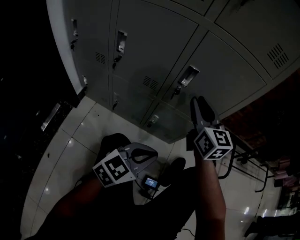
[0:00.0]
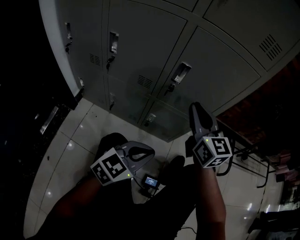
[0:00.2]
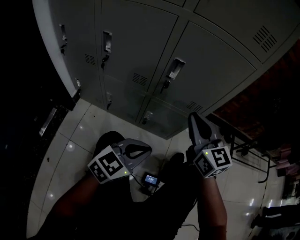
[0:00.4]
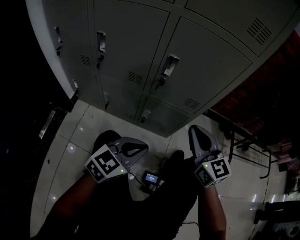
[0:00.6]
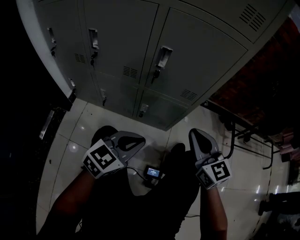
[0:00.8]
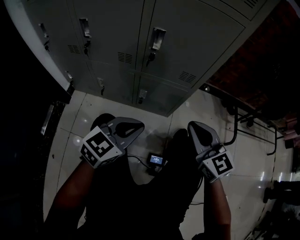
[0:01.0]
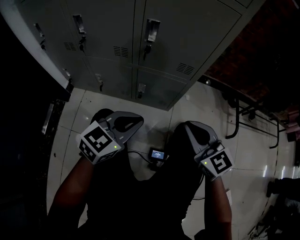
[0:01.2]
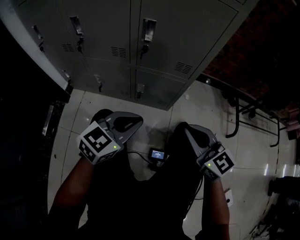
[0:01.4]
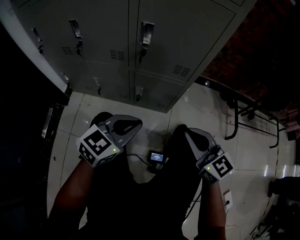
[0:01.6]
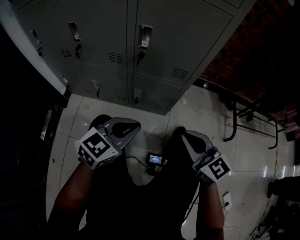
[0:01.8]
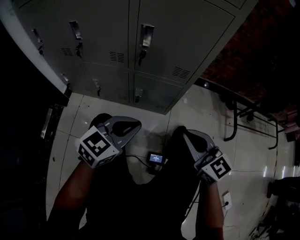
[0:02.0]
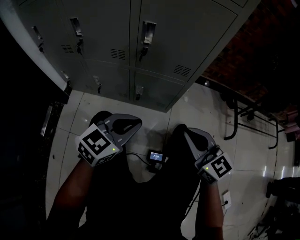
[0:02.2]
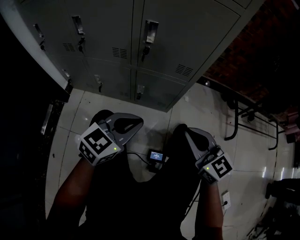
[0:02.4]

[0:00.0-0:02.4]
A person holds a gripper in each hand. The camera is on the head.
0:00.0 to 0:01.2: The right gripper goes about 25 cm backward, to the right and downward, and closes its fingers.
0:01.2 to 0:02.4: There are only small adjustments of the grippers.

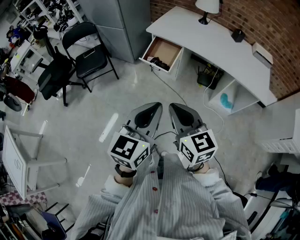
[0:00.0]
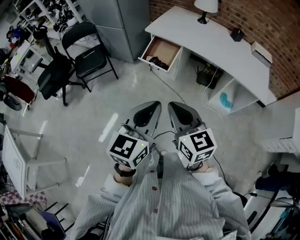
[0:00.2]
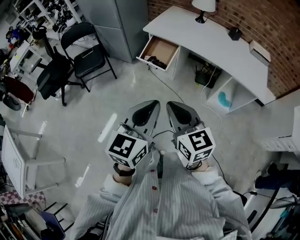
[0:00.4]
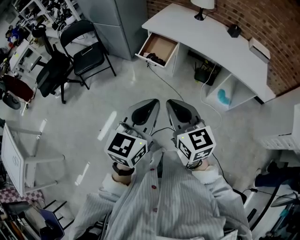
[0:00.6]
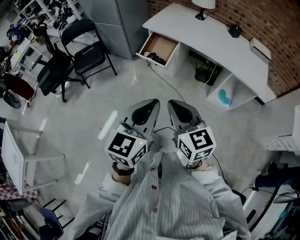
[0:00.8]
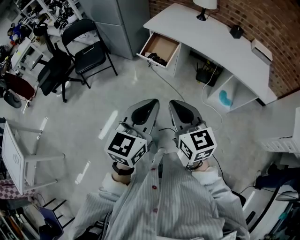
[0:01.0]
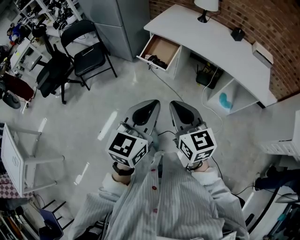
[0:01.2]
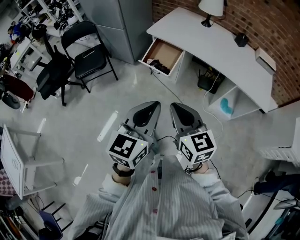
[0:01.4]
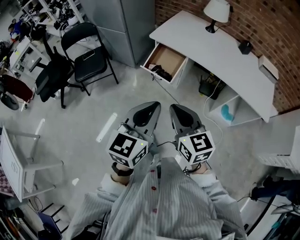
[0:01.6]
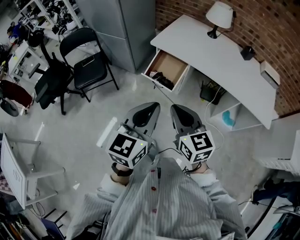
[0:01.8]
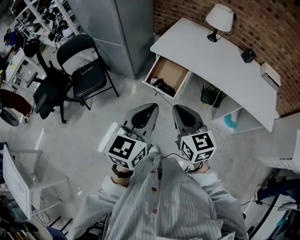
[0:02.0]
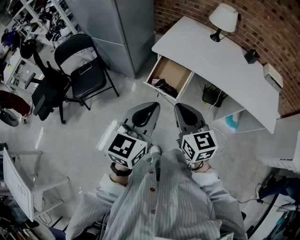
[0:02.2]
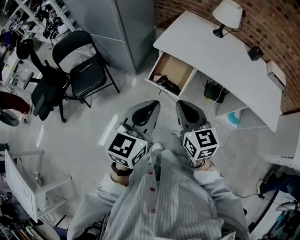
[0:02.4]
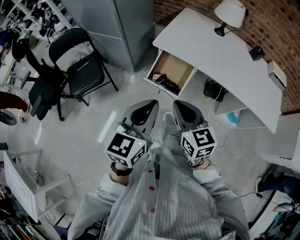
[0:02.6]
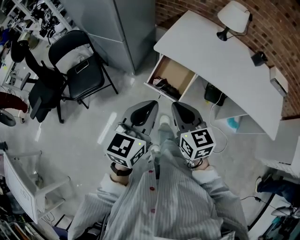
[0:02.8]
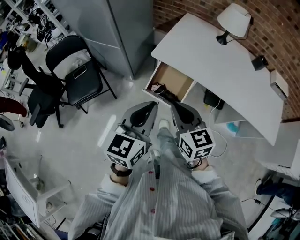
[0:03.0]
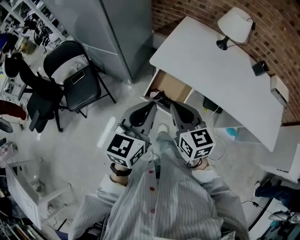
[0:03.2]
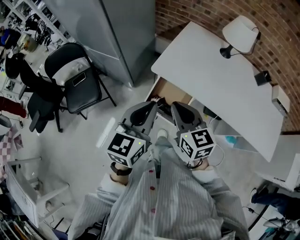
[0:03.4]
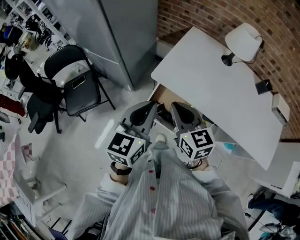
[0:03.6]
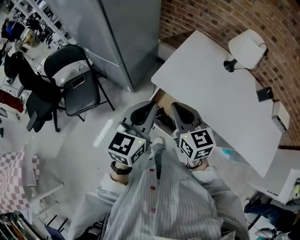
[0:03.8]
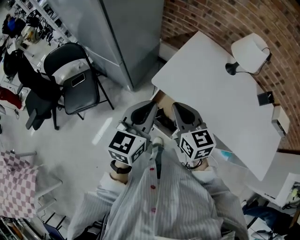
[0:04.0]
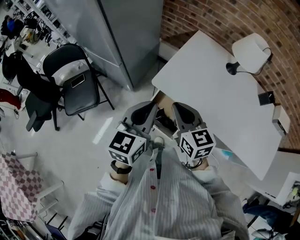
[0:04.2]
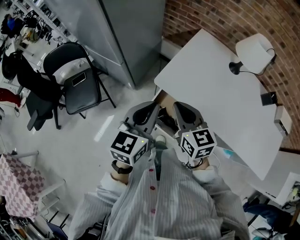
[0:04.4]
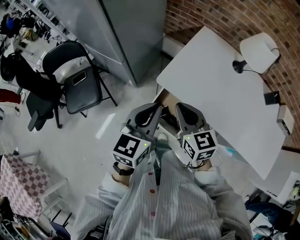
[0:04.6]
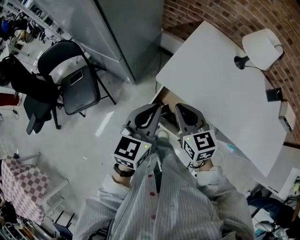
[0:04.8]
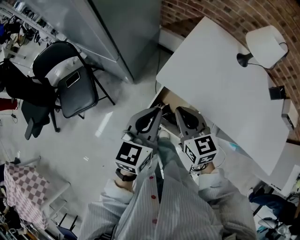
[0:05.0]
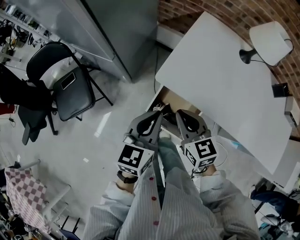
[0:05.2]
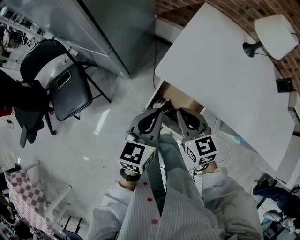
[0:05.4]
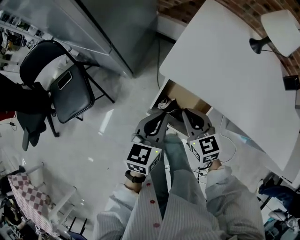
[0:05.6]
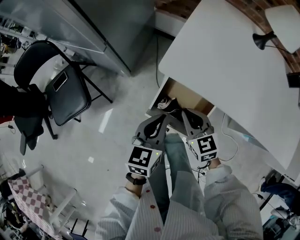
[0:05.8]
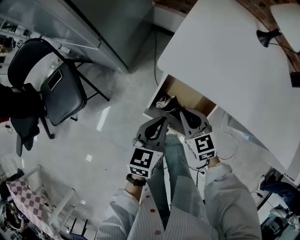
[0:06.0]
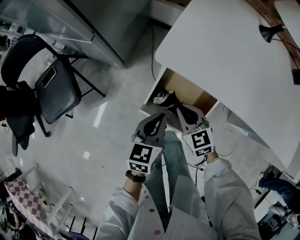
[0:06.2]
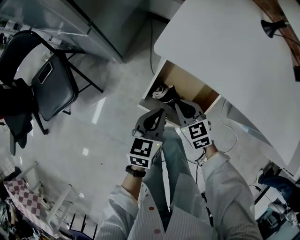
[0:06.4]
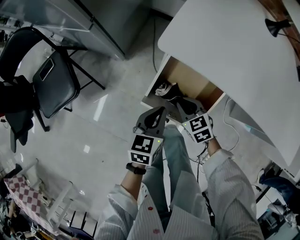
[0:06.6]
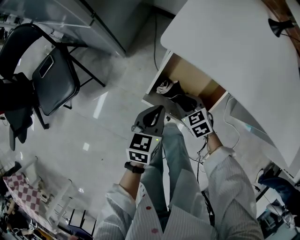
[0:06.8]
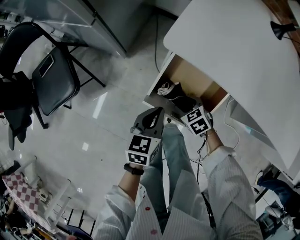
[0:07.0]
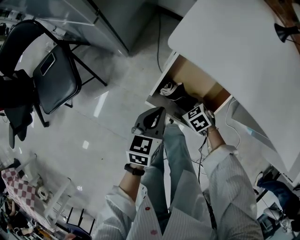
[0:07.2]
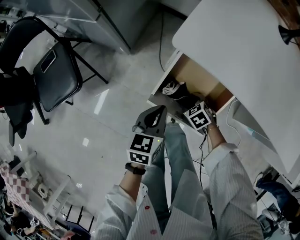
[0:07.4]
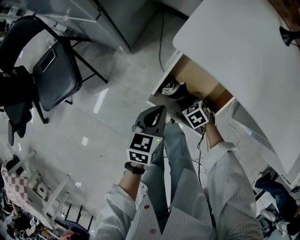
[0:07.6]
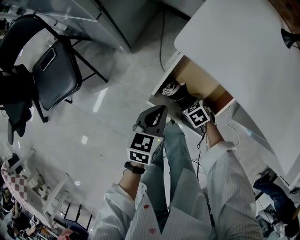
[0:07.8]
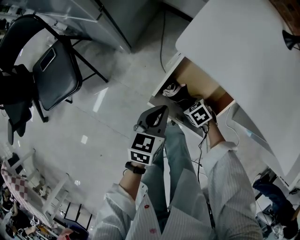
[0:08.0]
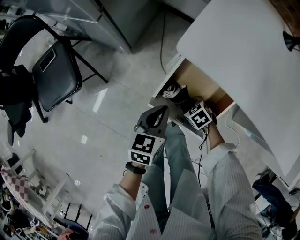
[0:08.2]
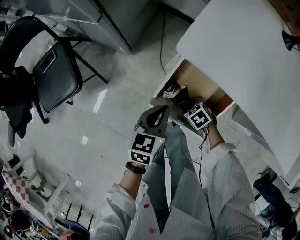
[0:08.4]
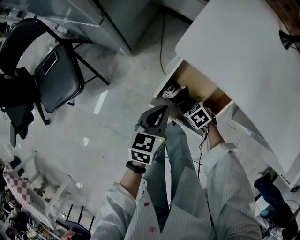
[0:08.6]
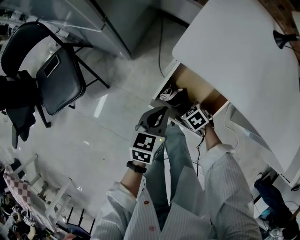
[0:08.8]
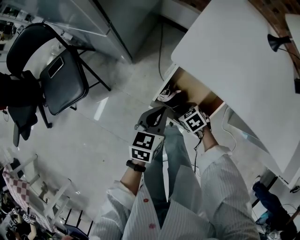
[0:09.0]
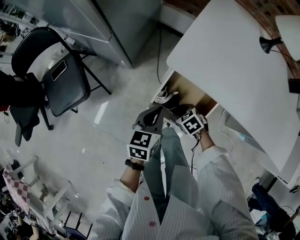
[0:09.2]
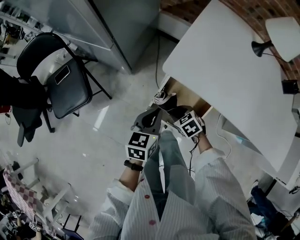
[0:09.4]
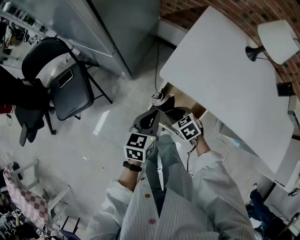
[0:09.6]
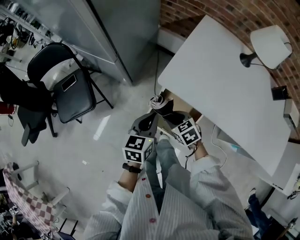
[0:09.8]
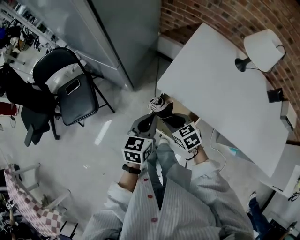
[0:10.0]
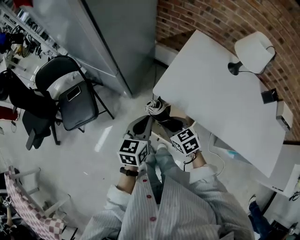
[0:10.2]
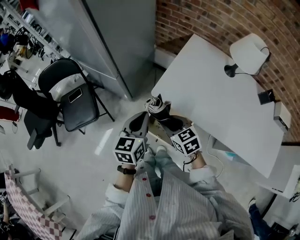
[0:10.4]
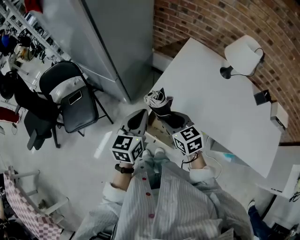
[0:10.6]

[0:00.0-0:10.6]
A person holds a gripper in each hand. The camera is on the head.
0:00.0 to 0:01.6: The two grippers go some 10 cm forward.
0:01.6 to 0:03.0: The grippers both shift forward by approximately 30 cm.
0:03.0 to 0:04.6: Both grippers move forward, roughly 20 cm.
0:04.6 to 0:06.0: Both grippers move downward, approximately 30 cm.
0:06.0 to 0:07.6: The right gripper travels downward by about 25 cm, tilts its fingers roughly 40 degrees downward, and opens up. Meanwhile the left gripper is displaced downward by about 10 cm.
0:07.6 to 0:09.0: Both grippers move upward, about 5 cm.
0:09.0 to 0:10.6: The two grippers go approximately 35 cm upward. The right gripper tilts its fingers about 40 degrees upward. Meanwhile the left gripper rotates approximately 20 degrees.

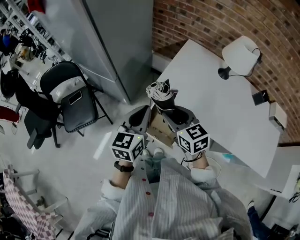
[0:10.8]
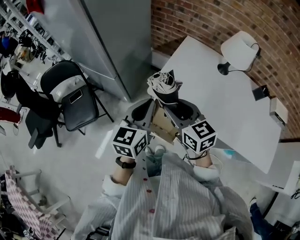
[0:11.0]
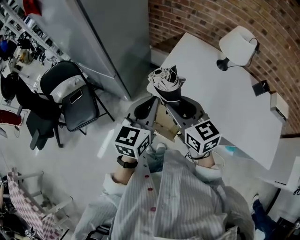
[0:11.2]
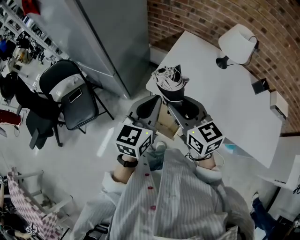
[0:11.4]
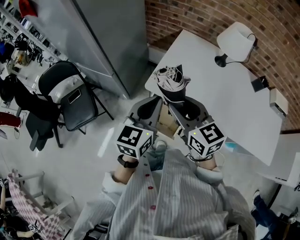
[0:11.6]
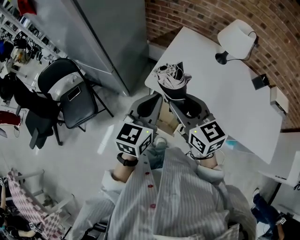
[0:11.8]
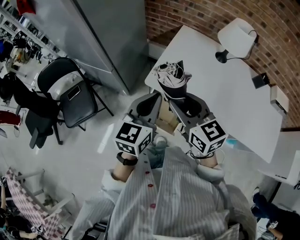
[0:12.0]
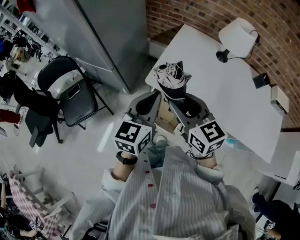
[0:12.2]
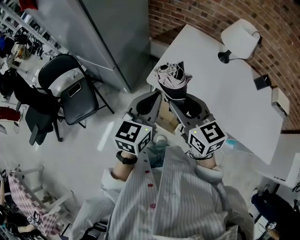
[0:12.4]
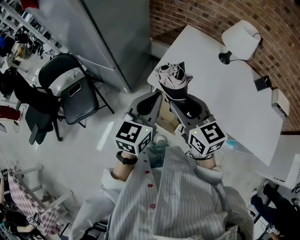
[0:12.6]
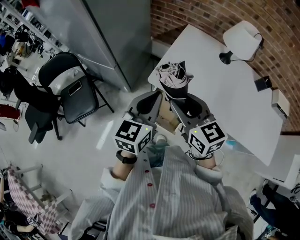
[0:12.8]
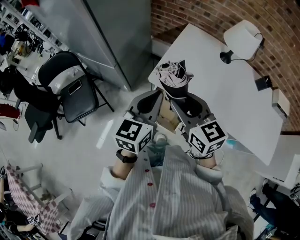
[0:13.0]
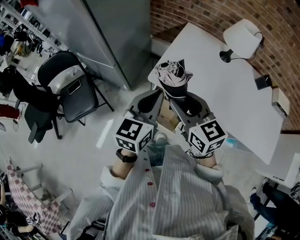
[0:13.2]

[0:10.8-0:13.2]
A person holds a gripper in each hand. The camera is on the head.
0:10.8 to 0:12.0: The right gripper shifts roughly 10 cm upward. Meanwhile the left gripper moves approximately 5 cm.
0:12.0 to 0:13.2: Neither gripper changes place.

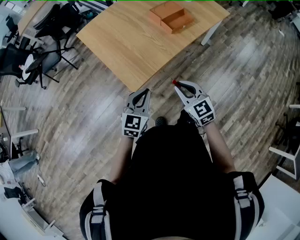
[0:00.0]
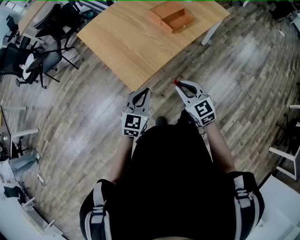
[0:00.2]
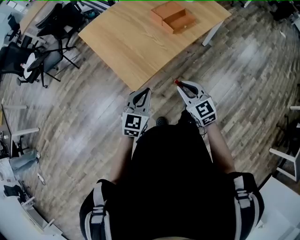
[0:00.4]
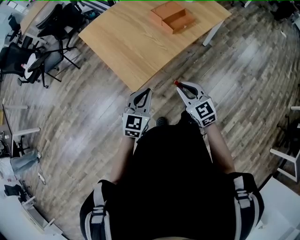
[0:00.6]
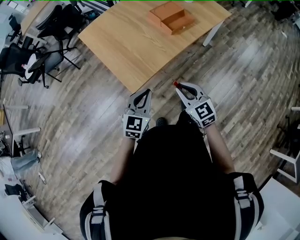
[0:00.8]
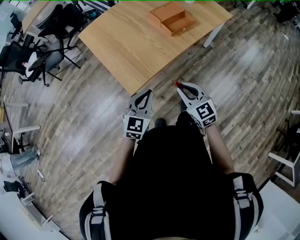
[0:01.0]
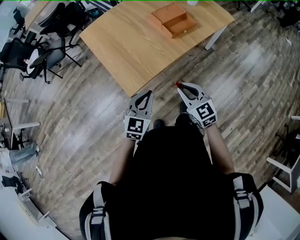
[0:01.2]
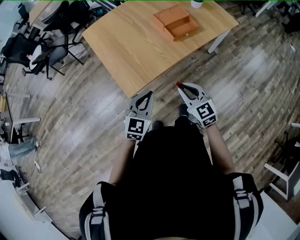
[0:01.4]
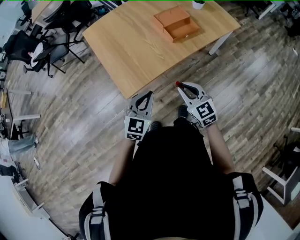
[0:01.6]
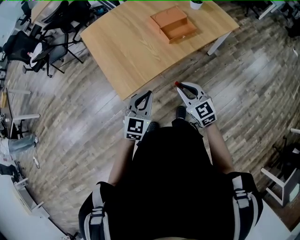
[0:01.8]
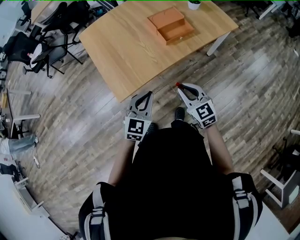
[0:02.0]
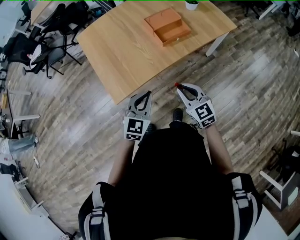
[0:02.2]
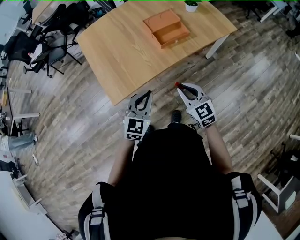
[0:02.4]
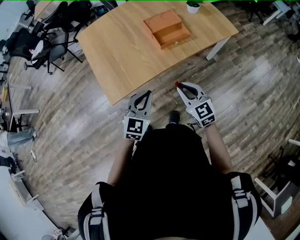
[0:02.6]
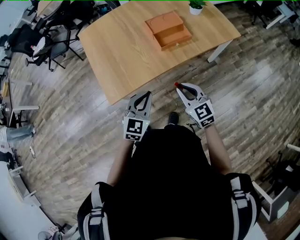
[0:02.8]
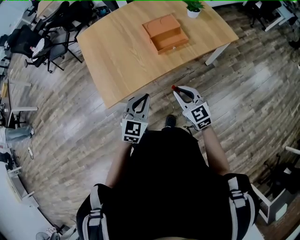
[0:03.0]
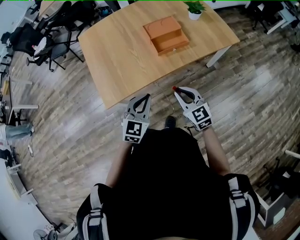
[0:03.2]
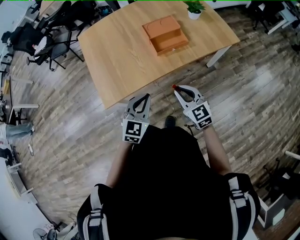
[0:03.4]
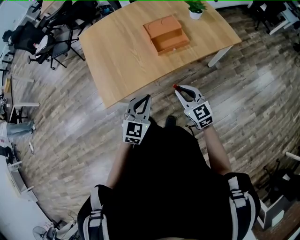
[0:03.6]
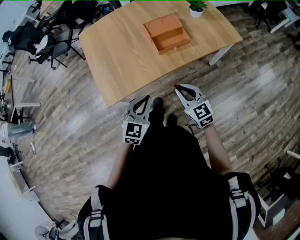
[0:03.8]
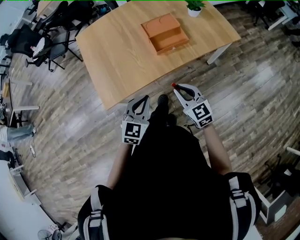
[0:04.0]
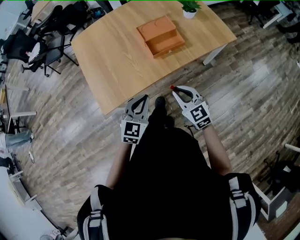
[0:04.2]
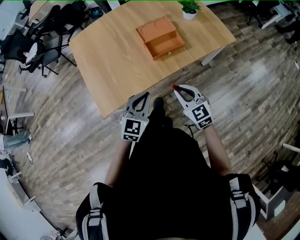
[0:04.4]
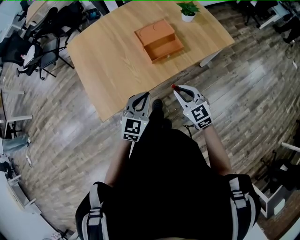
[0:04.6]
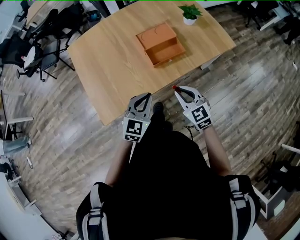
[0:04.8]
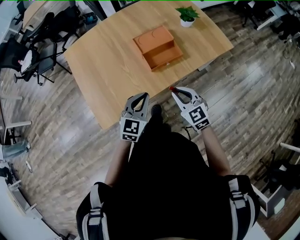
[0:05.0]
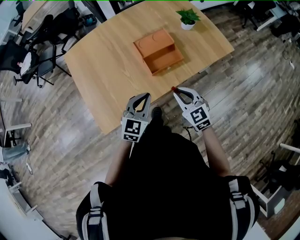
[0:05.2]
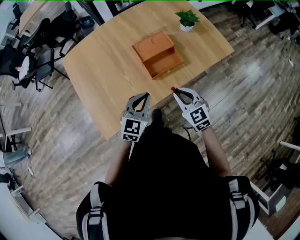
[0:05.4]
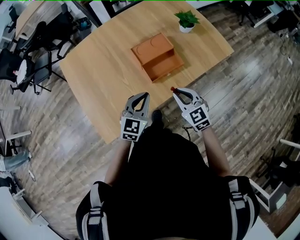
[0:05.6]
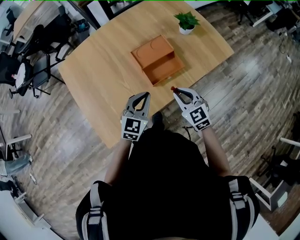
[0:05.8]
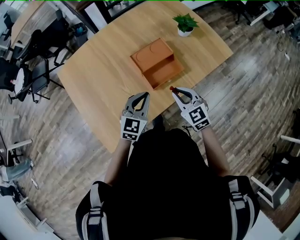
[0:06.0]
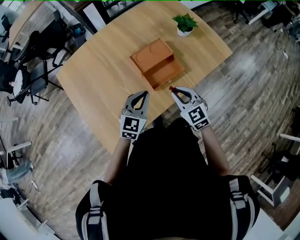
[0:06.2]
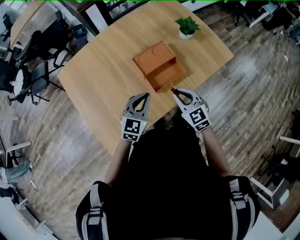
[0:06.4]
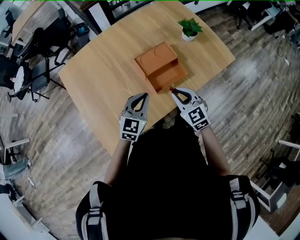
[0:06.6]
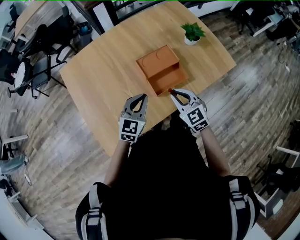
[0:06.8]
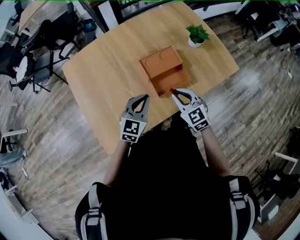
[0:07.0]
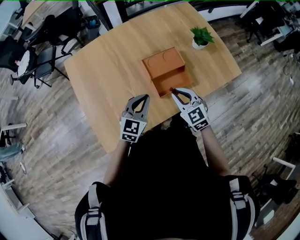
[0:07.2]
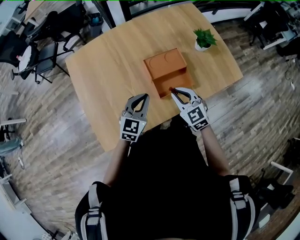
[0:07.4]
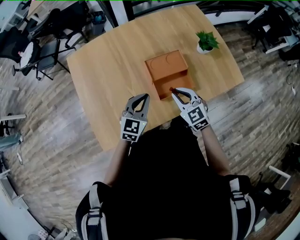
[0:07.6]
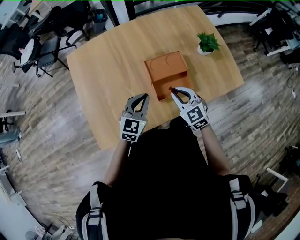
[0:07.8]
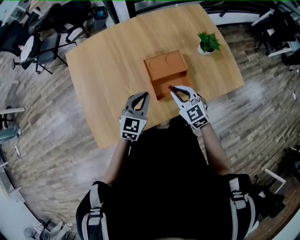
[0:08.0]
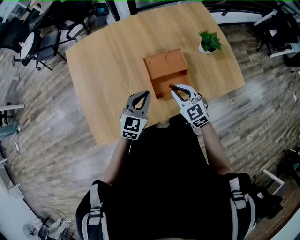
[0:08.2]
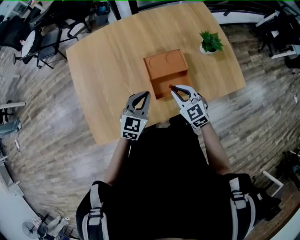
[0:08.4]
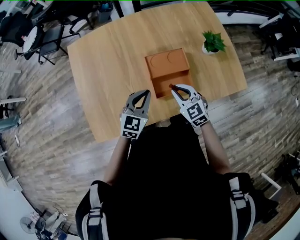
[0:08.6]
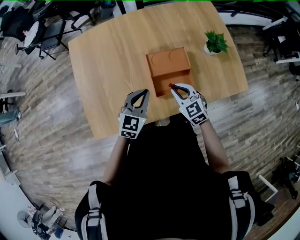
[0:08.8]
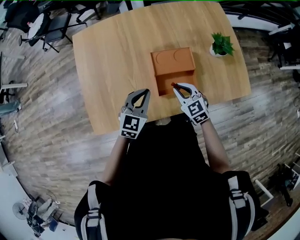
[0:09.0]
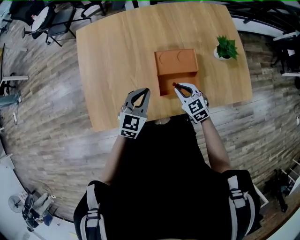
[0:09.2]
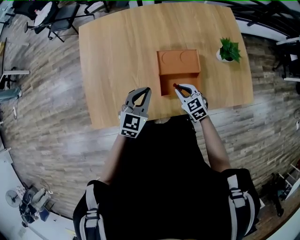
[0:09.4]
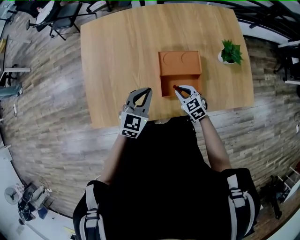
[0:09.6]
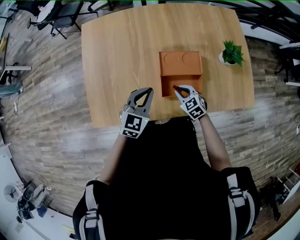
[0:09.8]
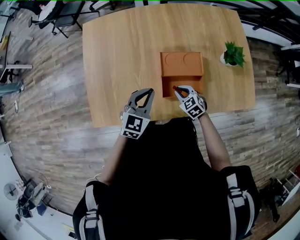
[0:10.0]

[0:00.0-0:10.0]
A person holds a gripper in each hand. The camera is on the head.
0:00.0 to 0:01.4: The right gripper heads to the right and forward, covering about 10 cm, while the left gripper is displaced to the right by roughly 10 cm.
0:01.4 to 0:02.8: Both grippers travel together to the right and forward, about 15 cm.
0:02.8 to 0:04.2: The left gripper changes place by roughly 5 cm, while the right gripper shifts by about 5 cm.
0:04.2 to 0:05.8: Both grippers move forward, some 20 cm.
0:05.8 to 0:07.2: Both grippers travel together forward, about 5 cm.
0:07.2 to 0:08.6: The left gripper ends up roughly 5 cm from where it was. The right gripper goes approximately 5 cm forward.
0:08.6 to 0:10.0: The right gripper is displaced downward by some 15 cm, and turns by about 20 degrees.
